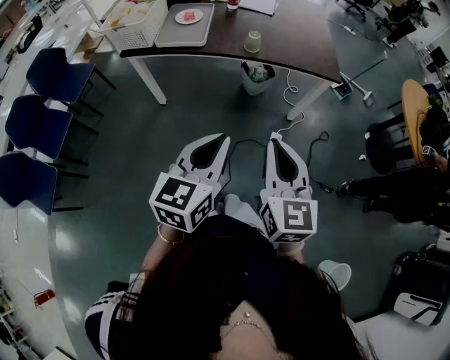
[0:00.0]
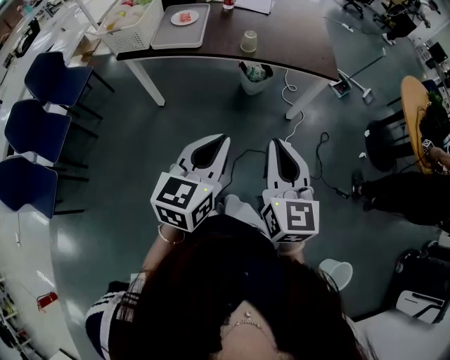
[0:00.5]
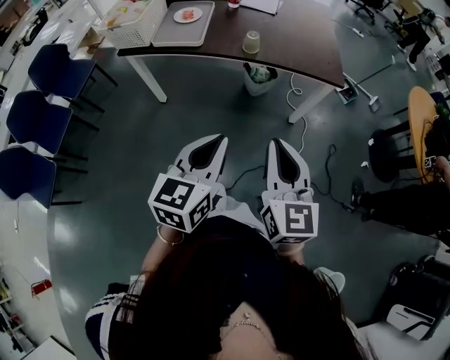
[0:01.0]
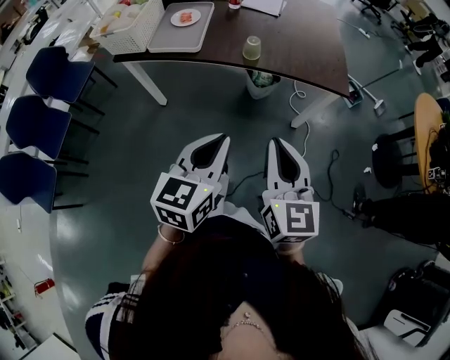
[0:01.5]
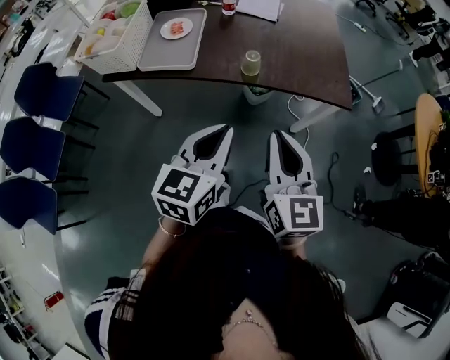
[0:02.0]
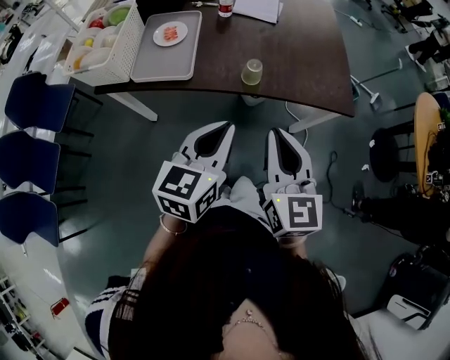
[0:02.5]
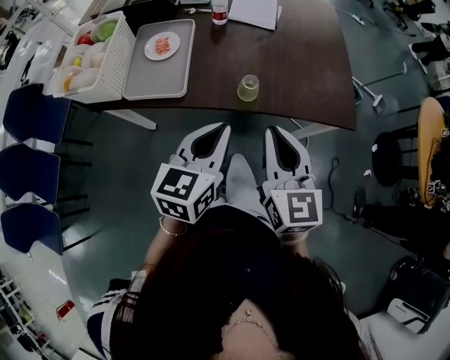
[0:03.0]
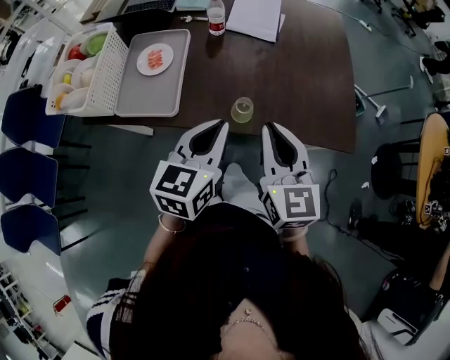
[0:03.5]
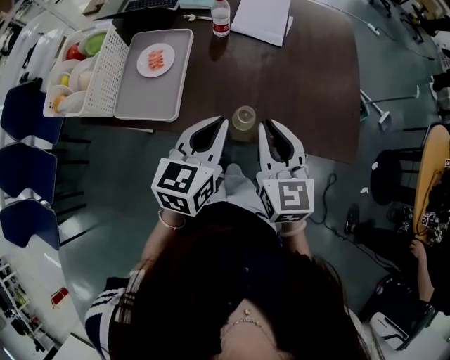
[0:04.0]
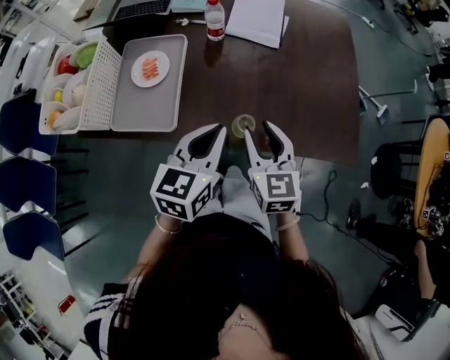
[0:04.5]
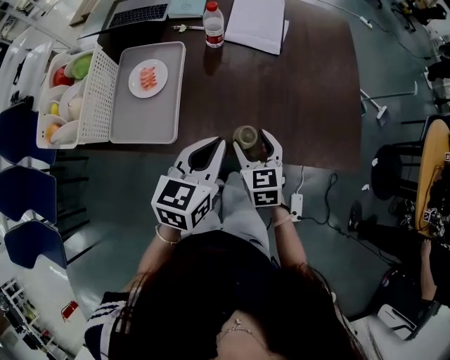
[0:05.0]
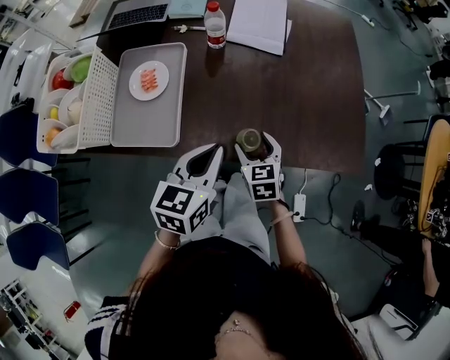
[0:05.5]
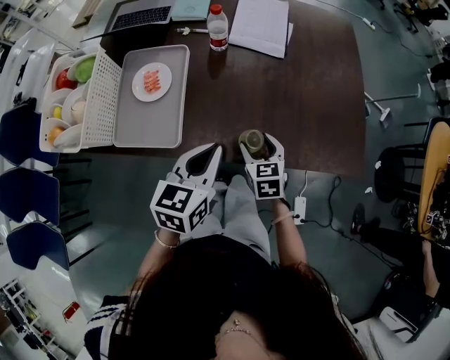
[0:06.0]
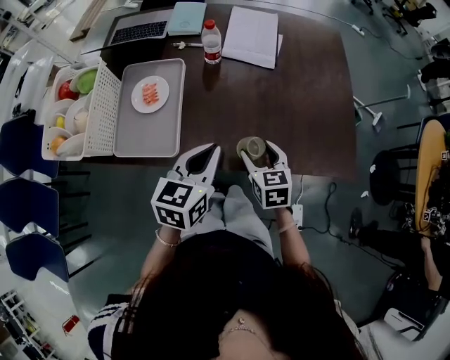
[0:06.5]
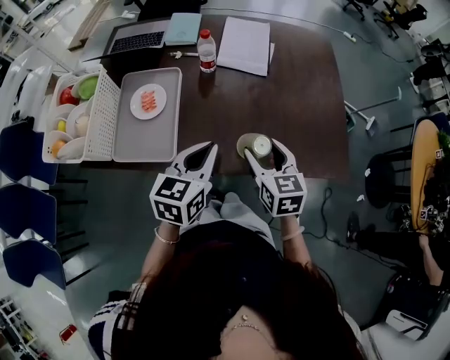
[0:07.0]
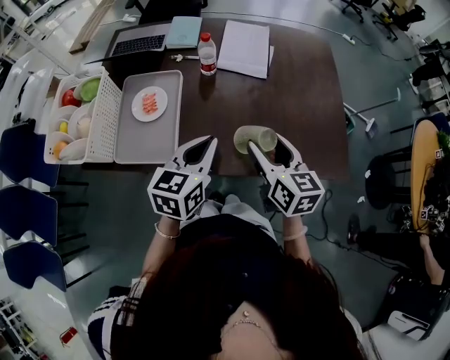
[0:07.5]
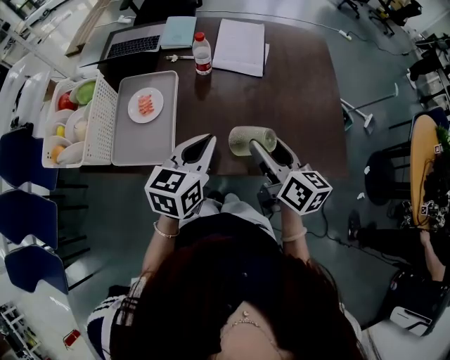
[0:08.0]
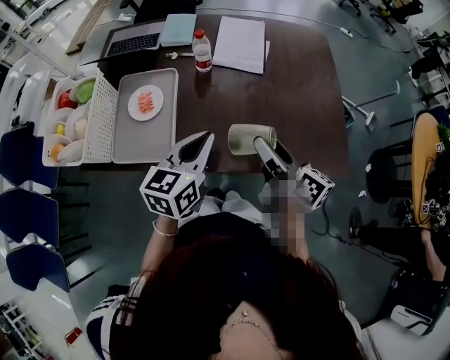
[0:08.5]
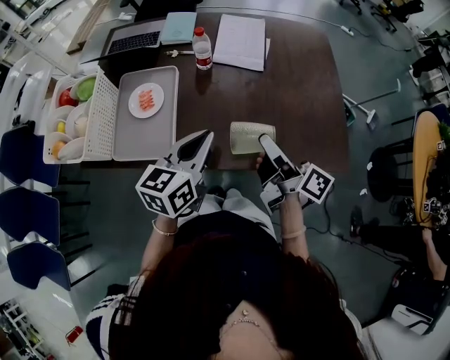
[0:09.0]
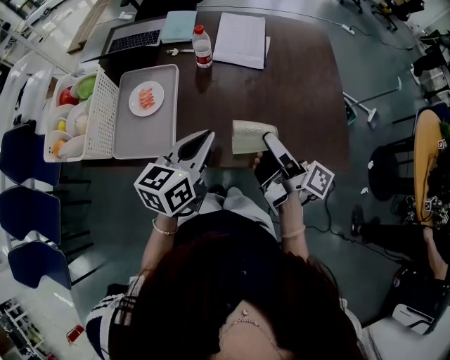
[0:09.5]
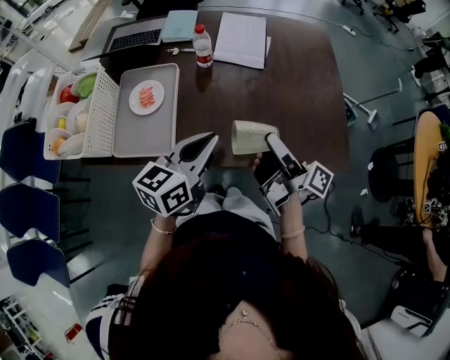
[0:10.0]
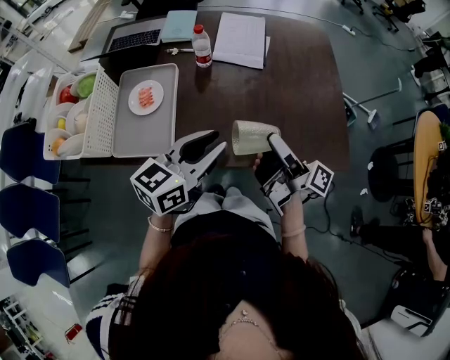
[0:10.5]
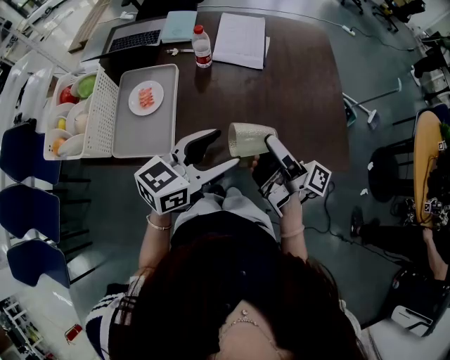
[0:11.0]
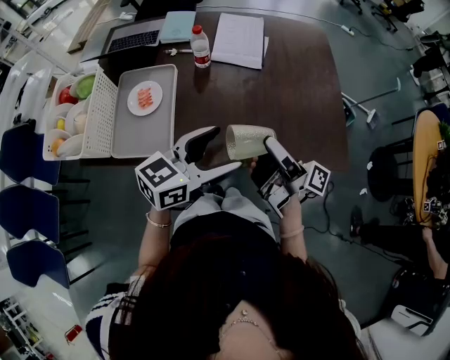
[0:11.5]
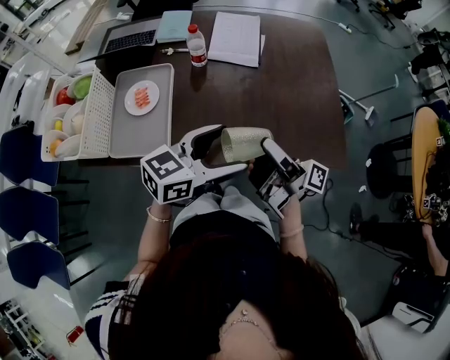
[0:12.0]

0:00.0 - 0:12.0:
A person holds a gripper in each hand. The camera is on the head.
0:00.0 - 0:02.0: The two grippers go approximately 25 cm forward.
0:02.0 - 0:04.0: The two grippers go some 30 cm forward.
0:04.0 - 0:06.0: The left gripper travels downward by some 5 cm, while the right gripper goes approximately 20 cm downward, changes its angle by some 30 degrees, and opens up.
0:06.0 - 0:08.0: The left gripper changes place by some 5 cm, while the right gripper moves upward, some 20 cm, and changes its angle by roughly 40 degrees.
0:08.0 - 0:10.0: The right gripper twists about 50 degrees clockwise, seen from behind.
0:10.0 - 0:12.0: The left gripper goes roughly 5 cm to the right, swivels some 20 degrees, and opens up.

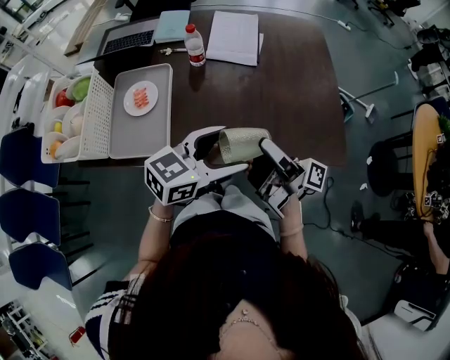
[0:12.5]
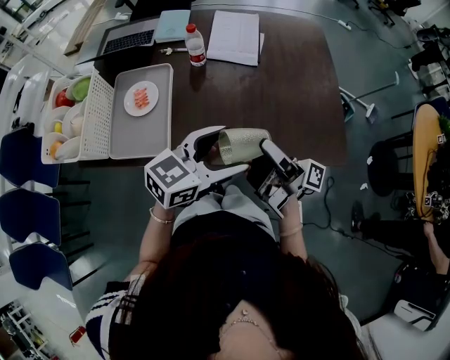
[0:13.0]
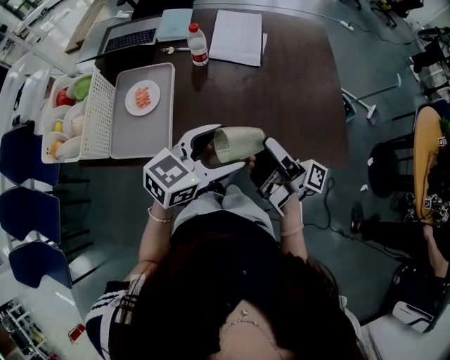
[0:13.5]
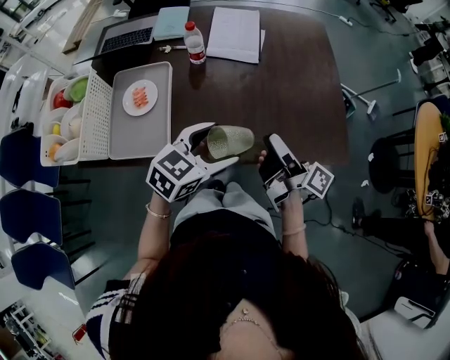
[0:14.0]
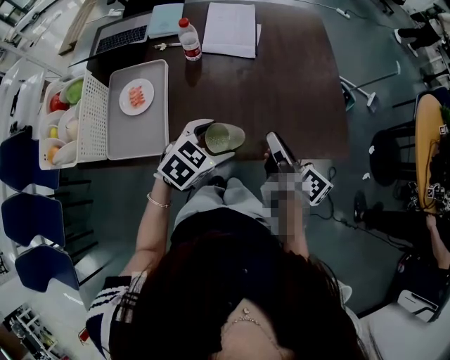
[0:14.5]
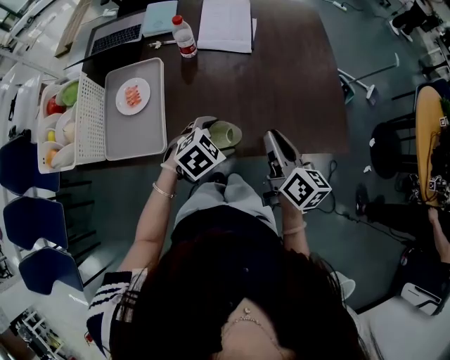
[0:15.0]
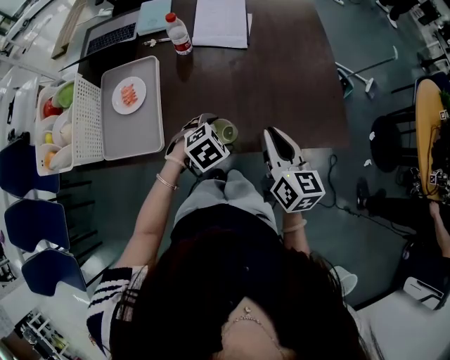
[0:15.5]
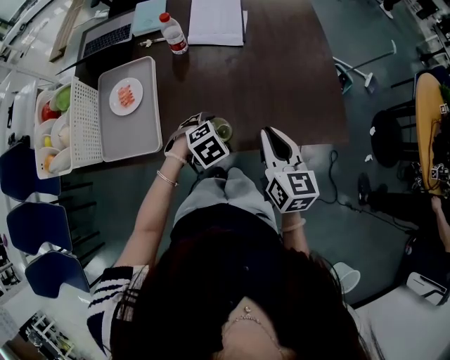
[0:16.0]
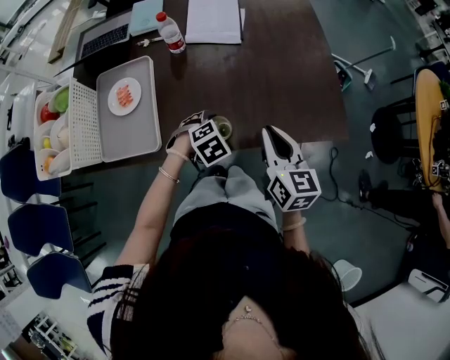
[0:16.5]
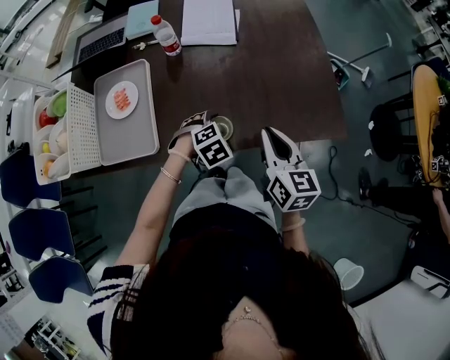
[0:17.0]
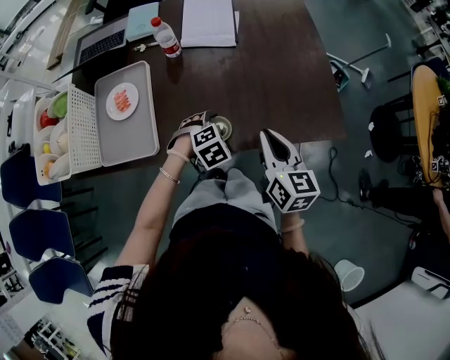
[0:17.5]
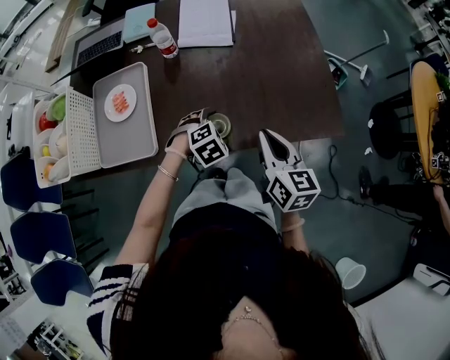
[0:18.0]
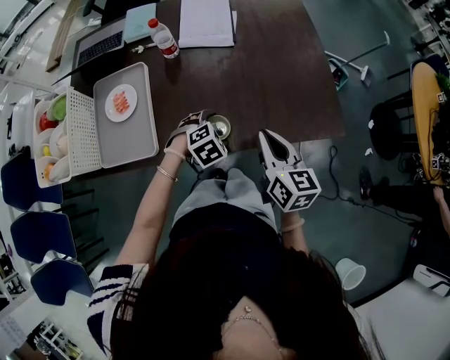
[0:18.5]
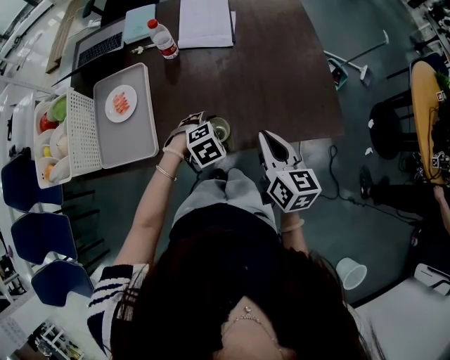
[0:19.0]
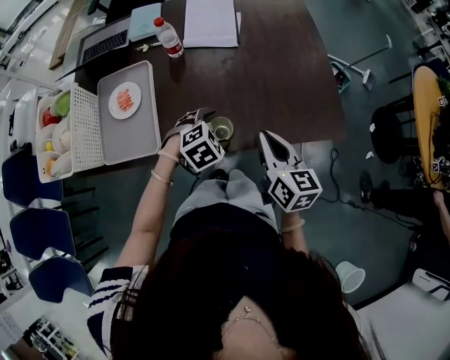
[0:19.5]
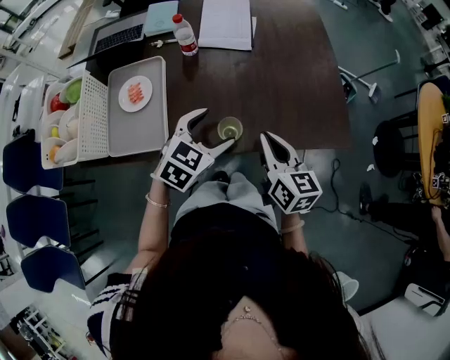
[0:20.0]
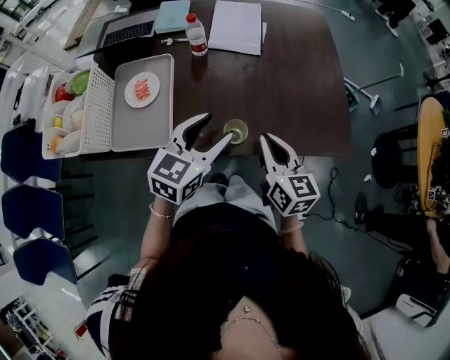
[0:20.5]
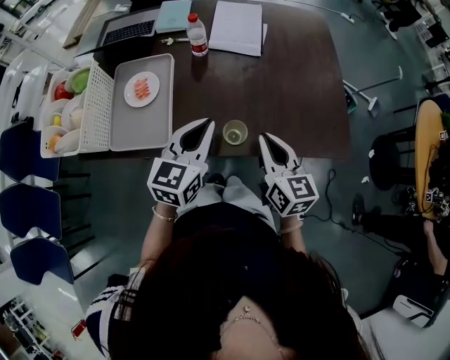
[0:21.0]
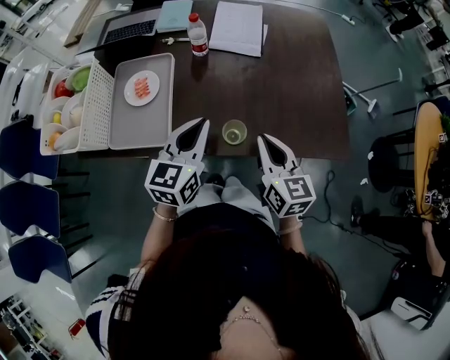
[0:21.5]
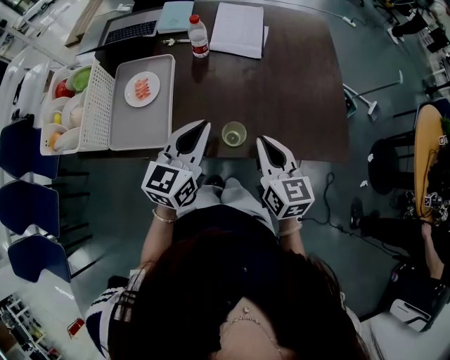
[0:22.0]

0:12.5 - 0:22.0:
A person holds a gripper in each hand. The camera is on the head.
0:12.5 - 0:14.5: The left gripper goes roughly 10 cm downward, and changes its angle by about 30 degrees; the right gripper changes place by roughly 10 cm, swivels roughly 50 degrees, and closes.
0:14.5 - 0:16.5: The right gripper changes its angle by approximately 40 degrees, while the left gripper goes roughly 10 cm downward, and changes its angle by some 30 degrees.
0:16.5 - 0:18.0: The grippers move only a little.
0:18.0 - 0:20.0: The left gripper heads upward, covering some 15 cm, and changes its angle by roughly 40 degrees.
0:20.0 - 0:22.0: The left gripper heads upward and to the left, covering approximately 10 cm, changes its angle by some 40 degrees, and closes up.

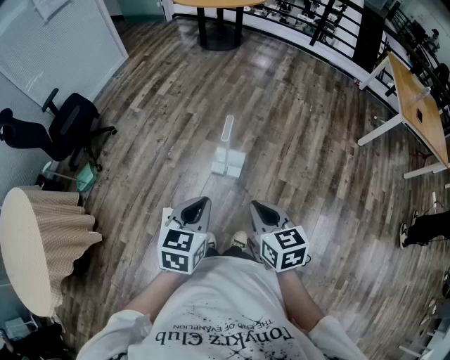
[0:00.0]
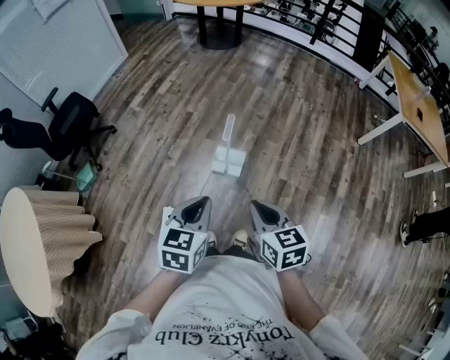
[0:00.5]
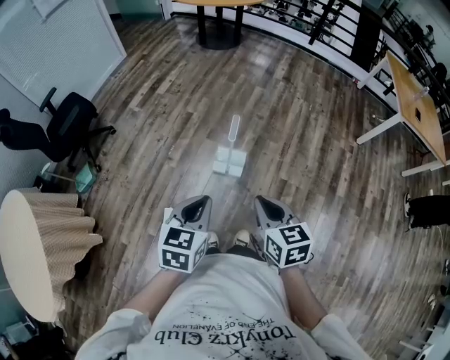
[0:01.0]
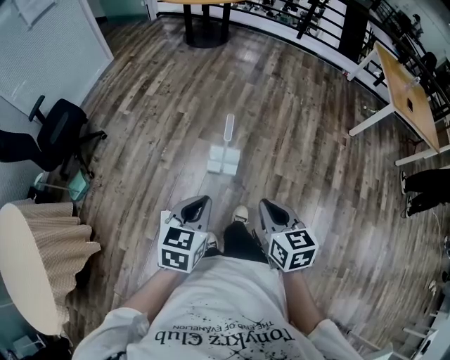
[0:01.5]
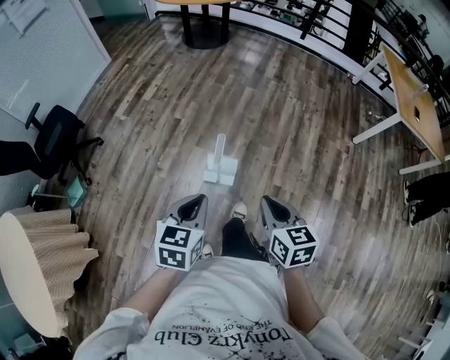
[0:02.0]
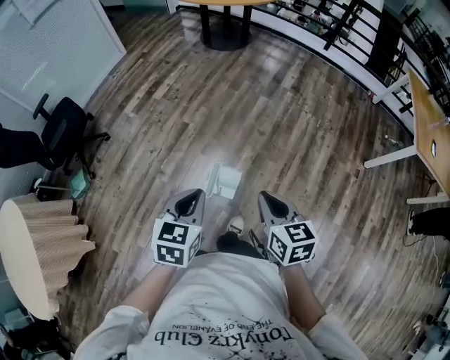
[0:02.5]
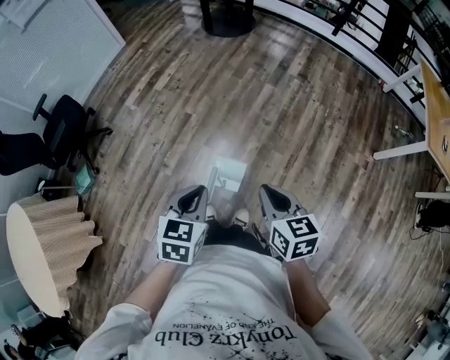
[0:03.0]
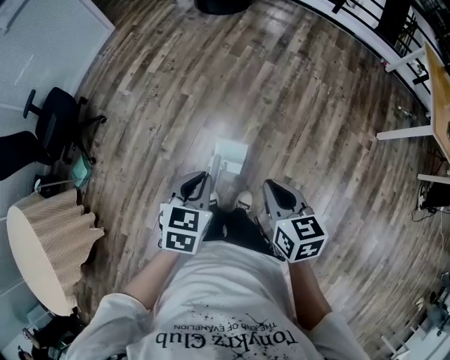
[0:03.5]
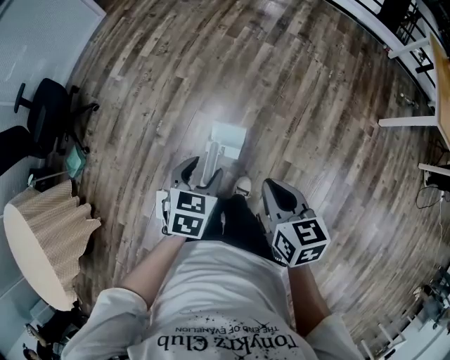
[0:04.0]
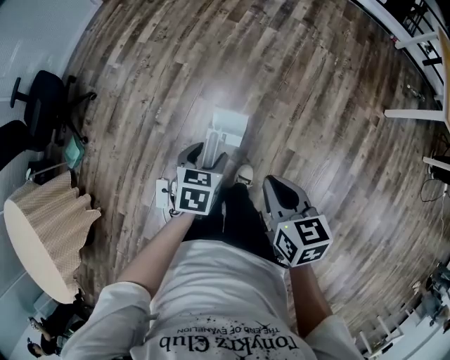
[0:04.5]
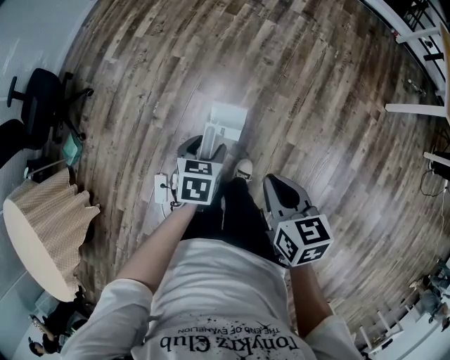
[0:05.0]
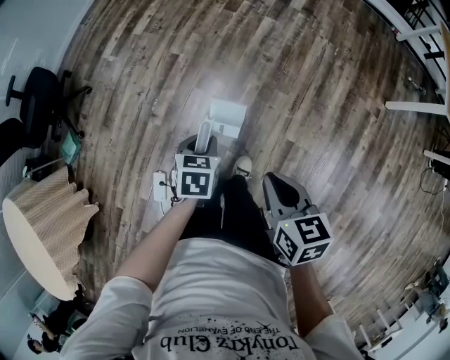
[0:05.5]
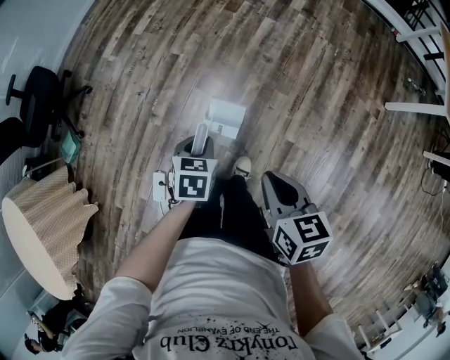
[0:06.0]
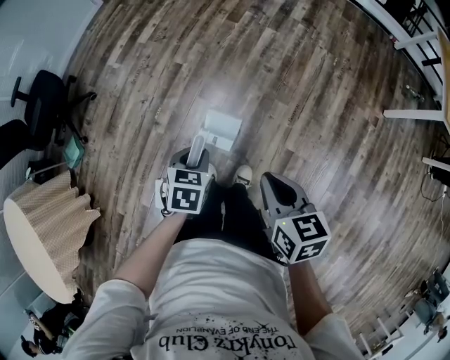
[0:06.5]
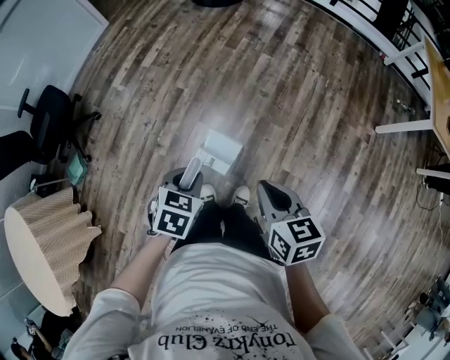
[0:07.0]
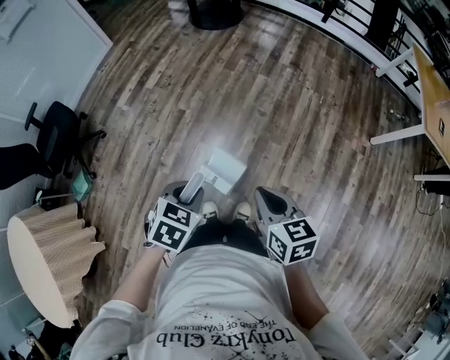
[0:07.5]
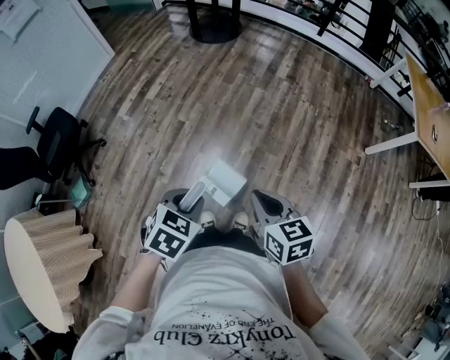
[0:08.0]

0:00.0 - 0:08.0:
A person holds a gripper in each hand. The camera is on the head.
0:00.0 - 0:02.0: Both grippers move forward, approximately 15 cm.
0:02.0 - 0:04.0: The left gripper is displaced forward and downward by about 25 cm, and opens its fingers, while the right gripper travels forward by about 15 cm.
0:04.0 - 0:06.0: The left gripper is displaced downward by approximately 10 cm, and closes.
0:06.0 - 0:08.0: The right gripper is displaced upward by some 10 cm. The left gripper moves upward, roughly 20 cm, and swivels approximately 30 degrees.
